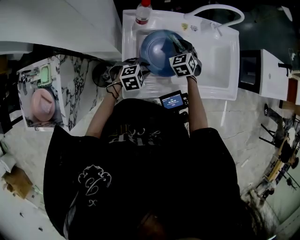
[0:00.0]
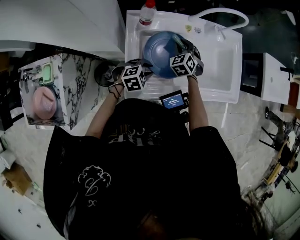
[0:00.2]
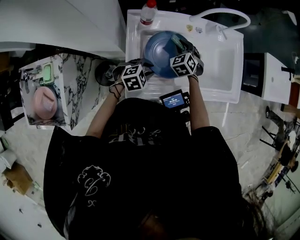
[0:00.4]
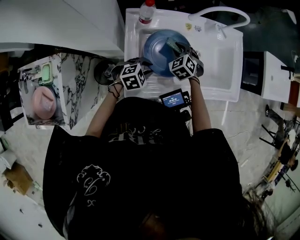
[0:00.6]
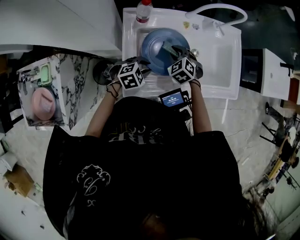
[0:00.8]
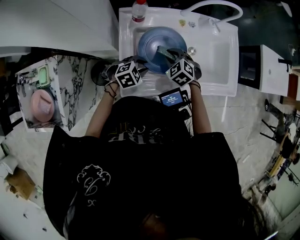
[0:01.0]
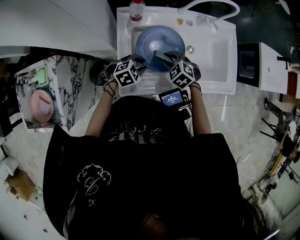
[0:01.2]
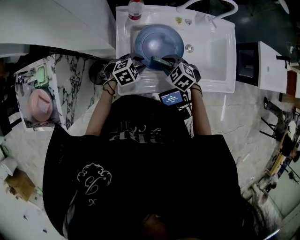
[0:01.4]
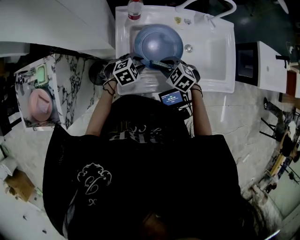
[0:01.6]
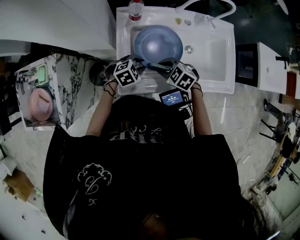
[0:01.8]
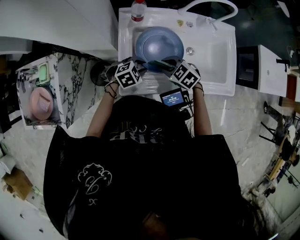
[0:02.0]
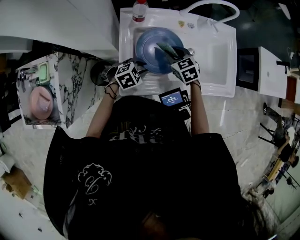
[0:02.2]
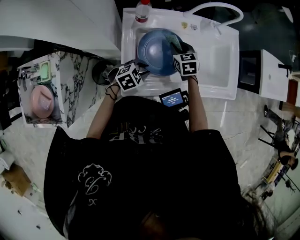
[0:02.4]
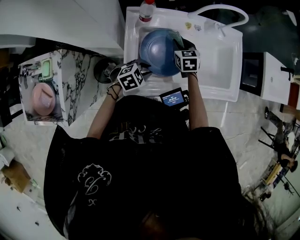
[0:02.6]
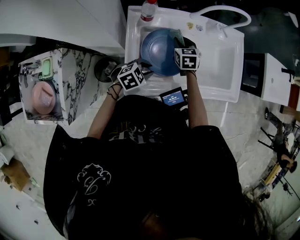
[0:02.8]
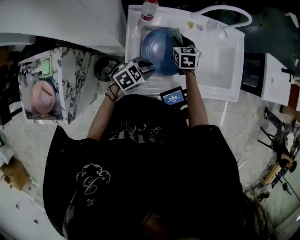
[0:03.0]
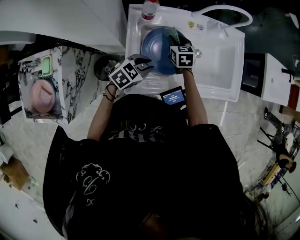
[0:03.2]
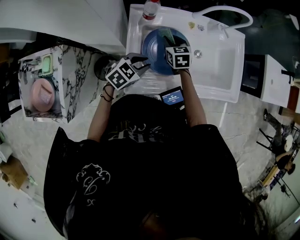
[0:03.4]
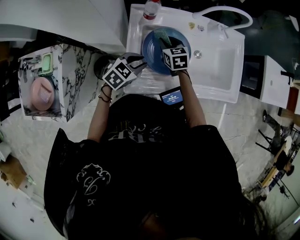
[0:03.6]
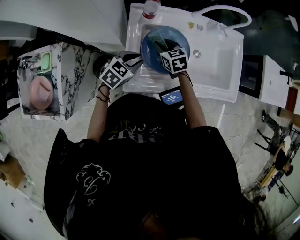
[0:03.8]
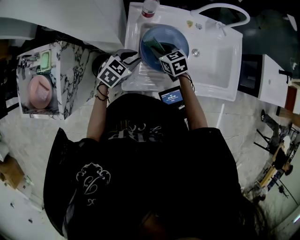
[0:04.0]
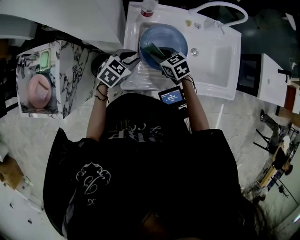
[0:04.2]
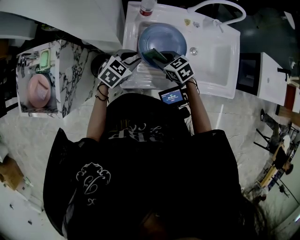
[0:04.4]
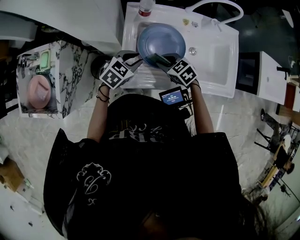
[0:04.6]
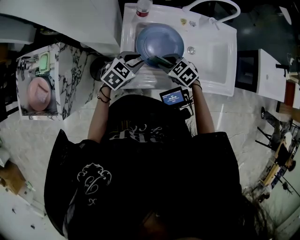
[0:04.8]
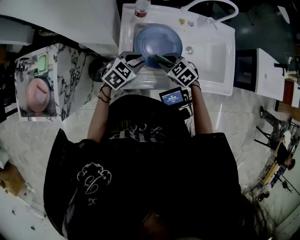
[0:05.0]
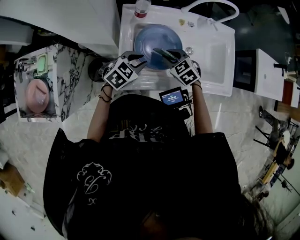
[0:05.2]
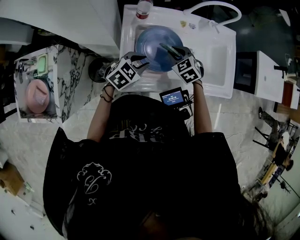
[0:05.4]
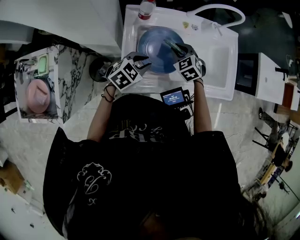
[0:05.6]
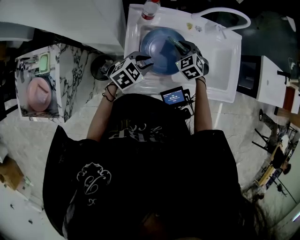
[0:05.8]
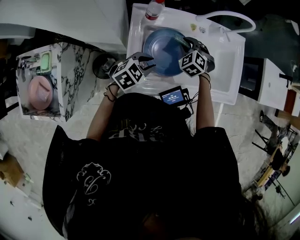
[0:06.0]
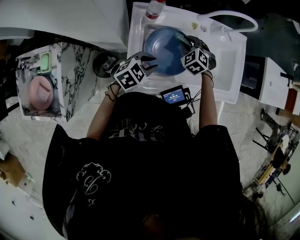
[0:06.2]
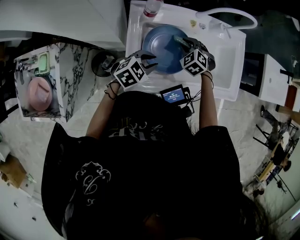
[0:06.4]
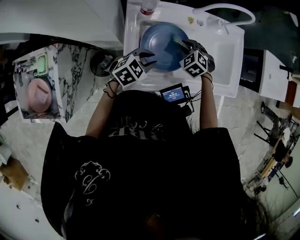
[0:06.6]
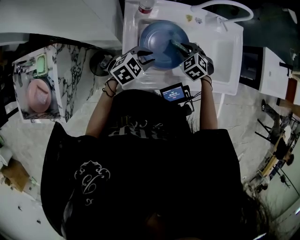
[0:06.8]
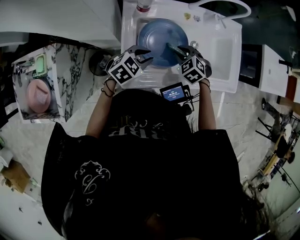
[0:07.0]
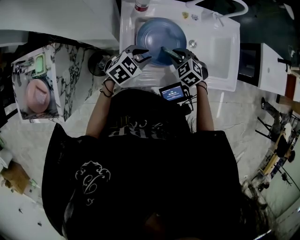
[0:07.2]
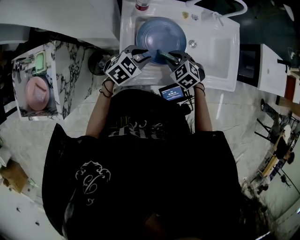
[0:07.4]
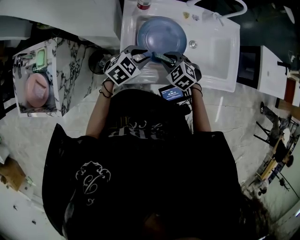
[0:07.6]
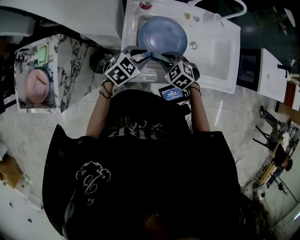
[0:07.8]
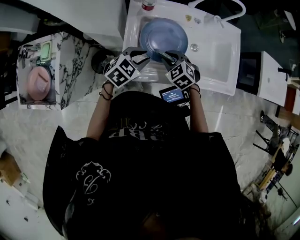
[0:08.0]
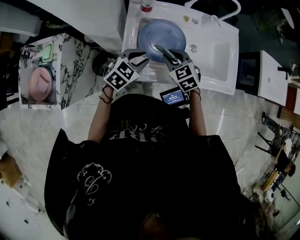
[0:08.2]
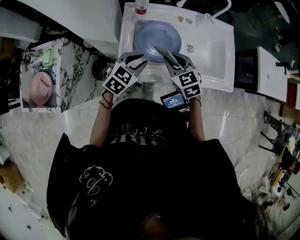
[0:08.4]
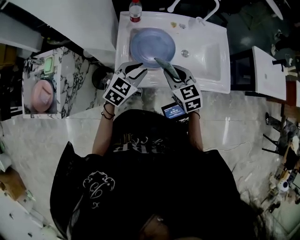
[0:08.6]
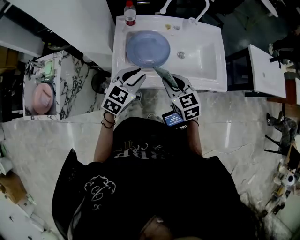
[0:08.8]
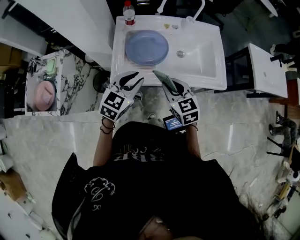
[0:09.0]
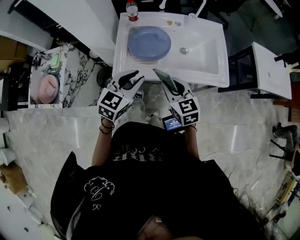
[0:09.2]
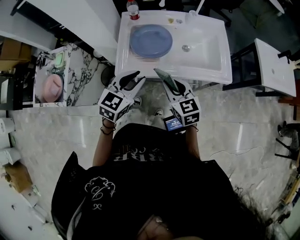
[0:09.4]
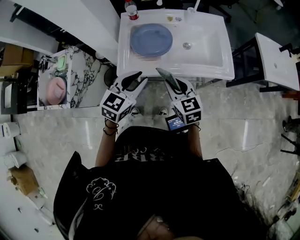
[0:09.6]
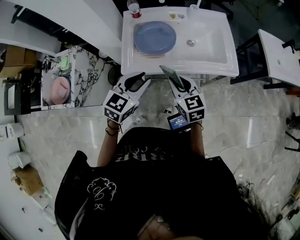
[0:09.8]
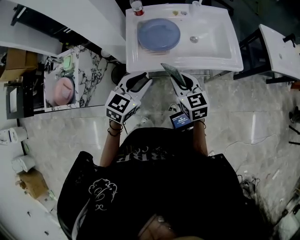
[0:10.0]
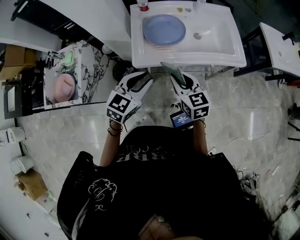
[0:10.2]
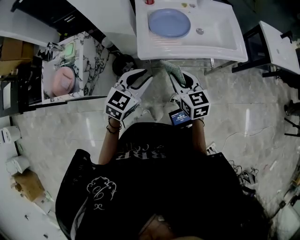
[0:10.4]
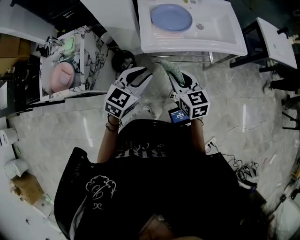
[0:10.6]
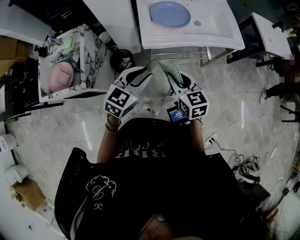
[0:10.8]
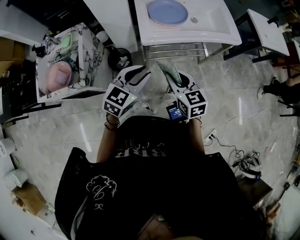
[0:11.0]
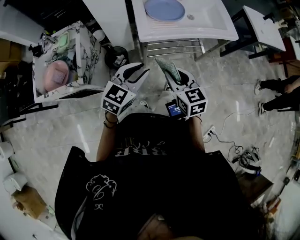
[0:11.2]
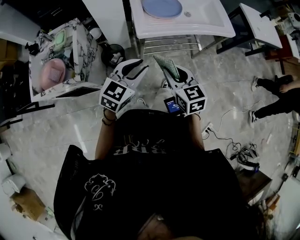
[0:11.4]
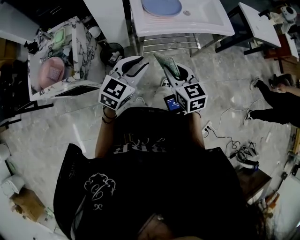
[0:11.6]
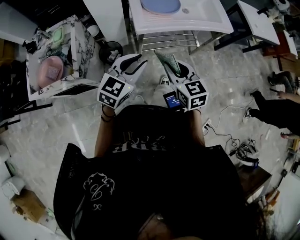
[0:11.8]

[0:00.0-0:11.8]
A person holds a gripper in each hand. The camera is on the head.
0:00.0 to 0:01.4: The right gripper travels backward by some 15 cm, and rotates roughly 30 degrees.
0:01.4 to 0:03.0: The right gripper moves about 15 cm, and changes its angle by some 50 degrees.
0:03.0 to 0:04.4: The right gripper ends up about 15 cm from where it was, and rotates roughly 40 degrees, while the left gripper shifts by some 5 cm.
0:04.4 to 0:06.0: The right gripper moves about 15 cm, and changes its angle by some 50 degrees.
0:06.0 to 0:07.4: The right gripper shifts some 15 cm backward.
0:07.4 to 0:08.8: The grippers both shift upward, backward and to the right by approximately 15 cm. The right gripper swivels approximately 40 degrees. Meanwhile the left gripper swivels about 20 degrees.
0:08.8 to 0:10.4: The grippers both shift backward and to the left by about 20 cm.
0:10.4 to 0:11.8: The grippers both shift backward and to the left by some 15 cm.

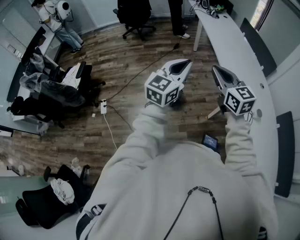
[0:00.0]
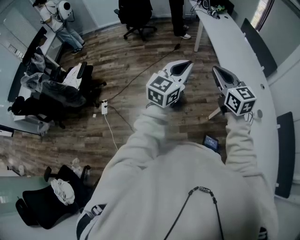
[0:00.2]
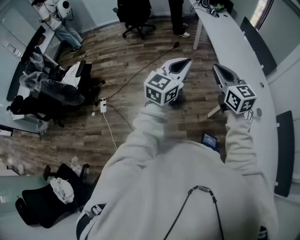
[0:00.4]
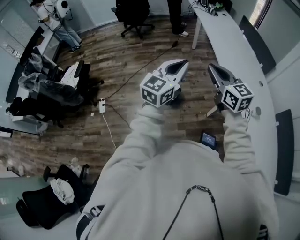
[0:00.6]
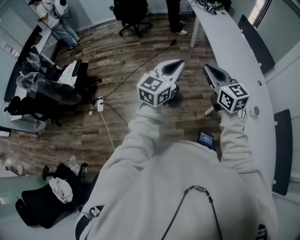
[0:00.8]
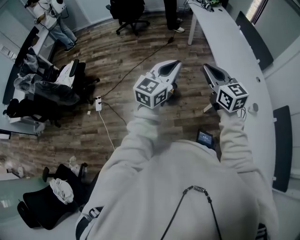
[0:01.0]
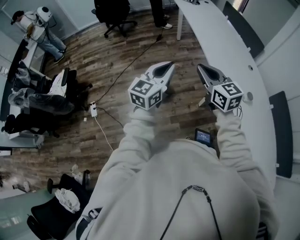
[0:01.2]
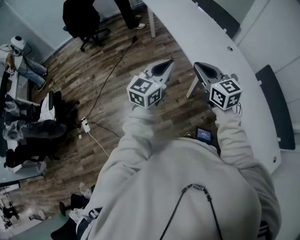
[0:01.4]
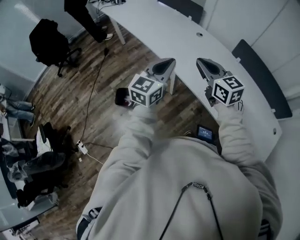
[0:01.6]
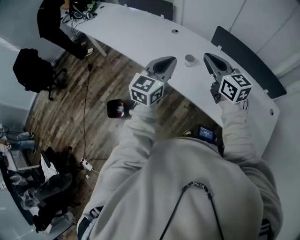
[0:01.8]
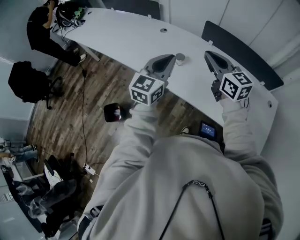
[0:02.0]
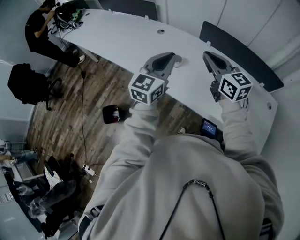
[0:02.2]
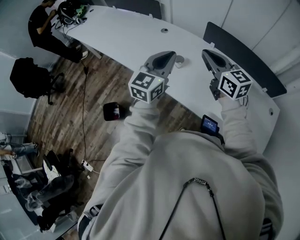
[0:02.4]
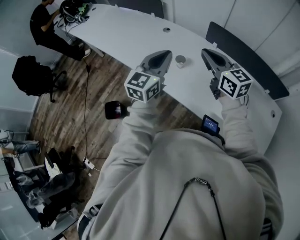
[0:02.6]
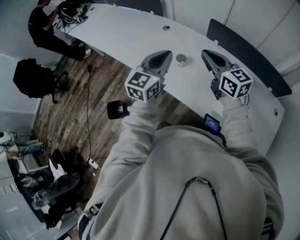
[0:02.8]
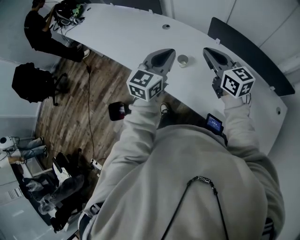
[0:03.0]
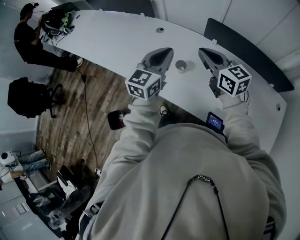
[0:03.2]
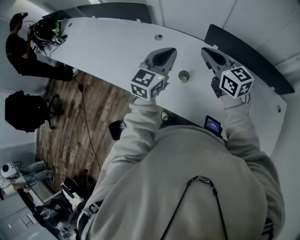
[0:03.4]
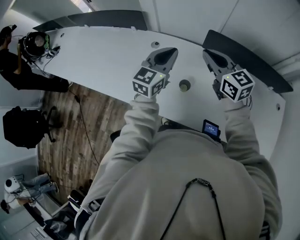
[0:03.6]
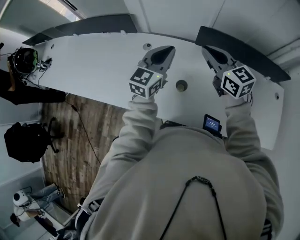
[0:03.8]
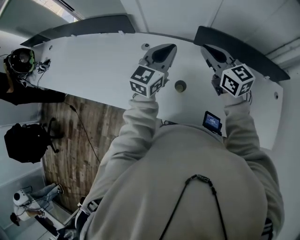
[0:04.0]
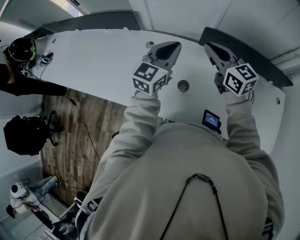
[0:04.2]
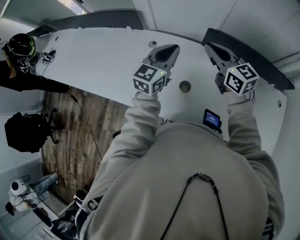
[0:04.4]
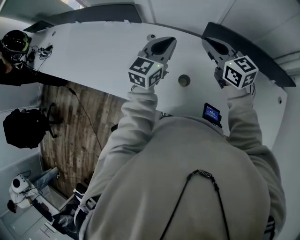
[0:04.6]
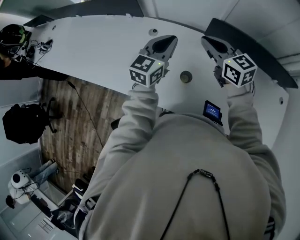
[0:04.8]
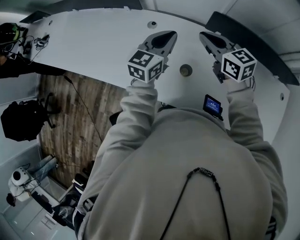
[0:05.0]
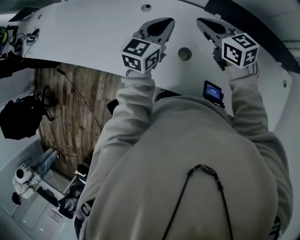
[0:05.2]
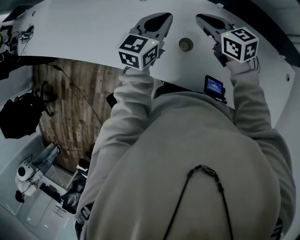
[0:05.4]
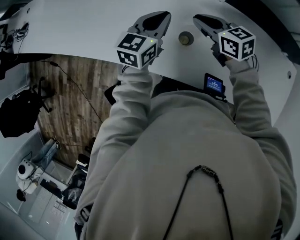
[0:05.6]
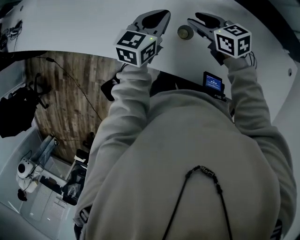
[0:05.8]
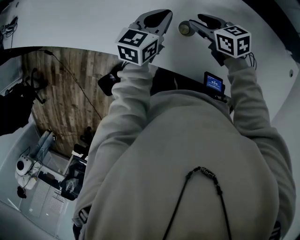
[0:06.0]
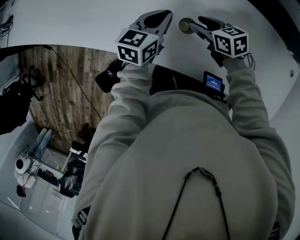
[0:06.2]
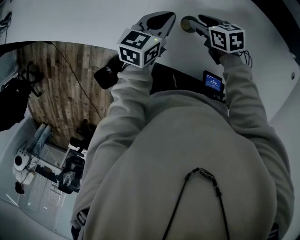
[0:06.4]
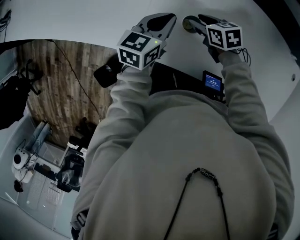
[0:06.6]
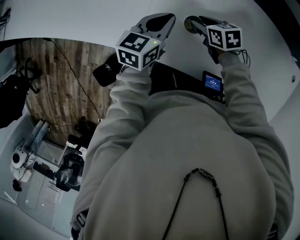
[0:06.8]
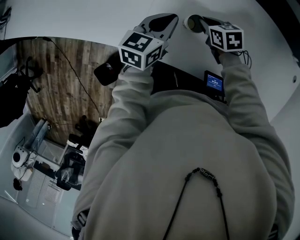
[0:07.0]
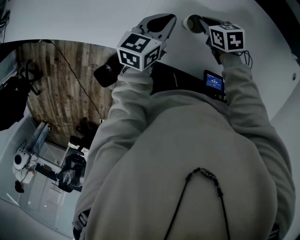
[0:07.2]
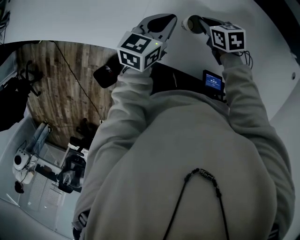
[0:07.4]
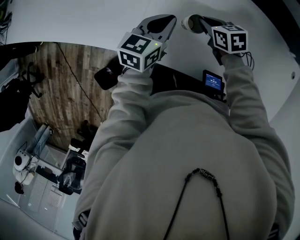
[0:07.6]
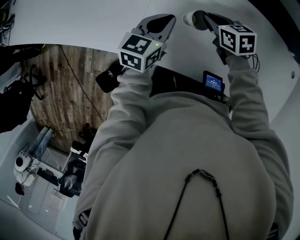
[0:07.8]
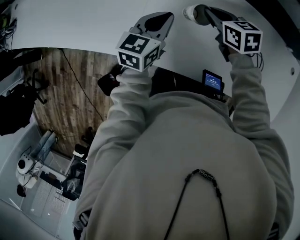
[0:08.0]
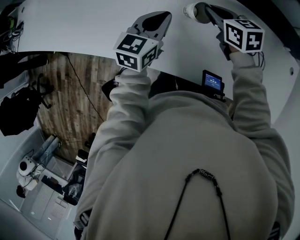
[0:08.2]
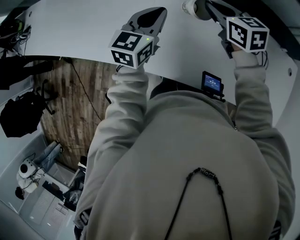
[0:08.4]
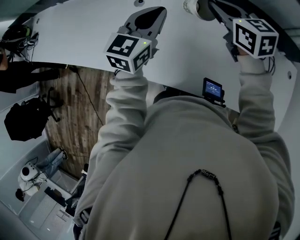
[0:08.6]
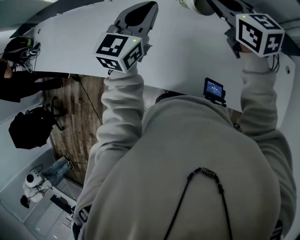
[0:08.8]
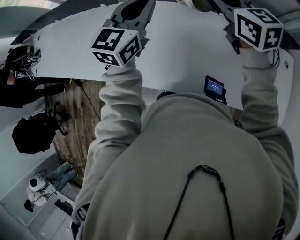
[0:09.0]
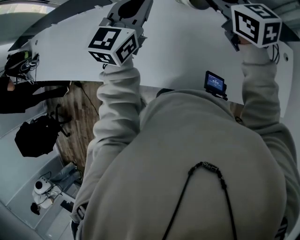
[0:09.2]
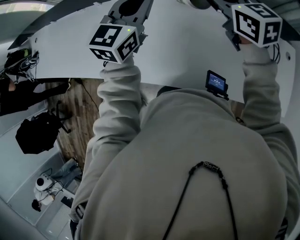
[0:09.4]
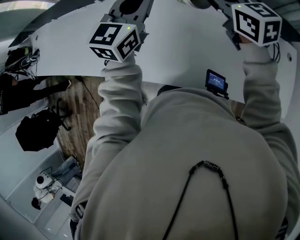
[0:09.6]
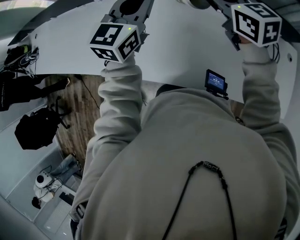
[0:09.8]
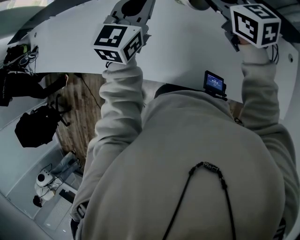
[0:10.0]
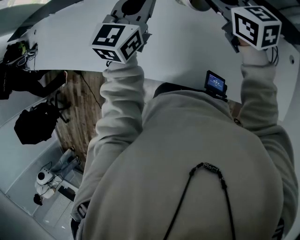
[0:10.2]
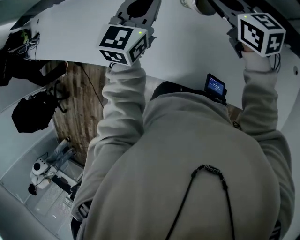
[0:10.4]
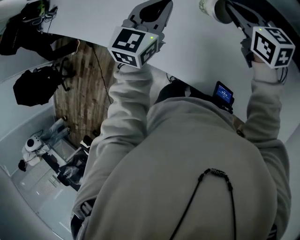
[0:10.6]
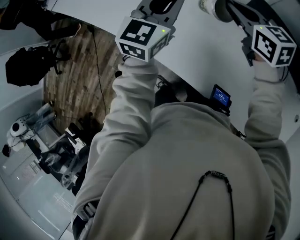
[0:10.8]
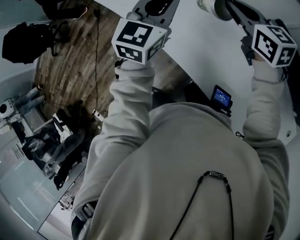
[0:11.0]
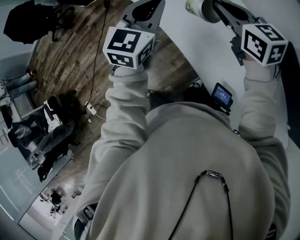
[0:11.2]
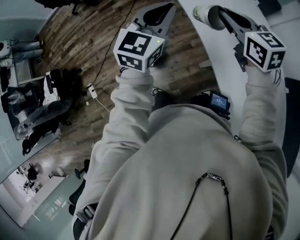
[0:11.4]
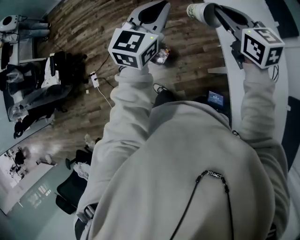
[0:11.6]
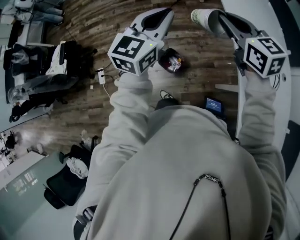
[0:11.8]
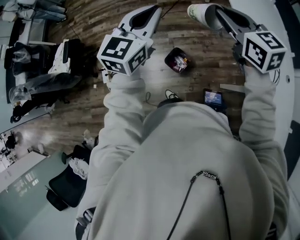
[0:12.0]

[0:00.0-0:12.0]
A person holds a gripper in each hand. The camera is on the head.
0:00.0 to 0:01.6: The left gripper changes place by about 30 cm, and rotates roughly 30 degrees. The right gripper changes place by approximately 30 cm, and changes its angle by roughly 30 degrees.
0:01.6 to 0:03.0: The two grippers go about 25 cm to the right and forward.
0:03.0 to 0:04.4: The two grippers go approximately 25 cm forward.
0:04.4 to 0:06.0: Both grippers travel together downward, about 25 cm. The left gripper turns by about 20 degrees. The right gripper turns by approximately 40 degrees, and opens its fingers.
0:06.0 to 0:07.6: The right gripper moves downward, roughly 5 cm, and closes.
0:07.6 to 0:09.0: The grippers both shift upward by roughly 30 cm. The left gripper swivels approximately 30 degrees; the right gripper tilts its fingers approximately 30 degrees upward.
0:09.0 to 0:10.4: The left gripper shifts by roughly 5 cm, while the right gripper travels downward by roughly 5 cm.
0:10.4 to 0:12.0: Both grippers are carried roughly 90 cm. The left gripper changes its angle by approximately 70 degrees, while the right gripper changes its angle by some 70 degrees.
